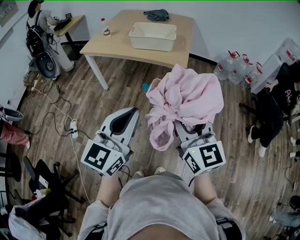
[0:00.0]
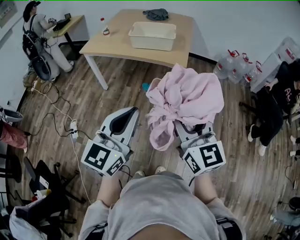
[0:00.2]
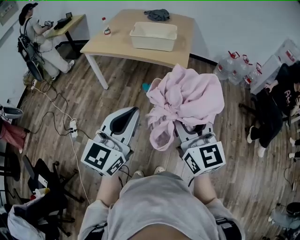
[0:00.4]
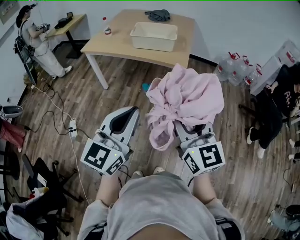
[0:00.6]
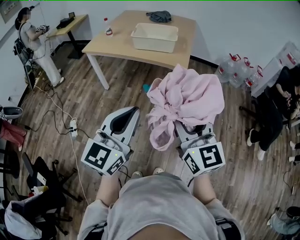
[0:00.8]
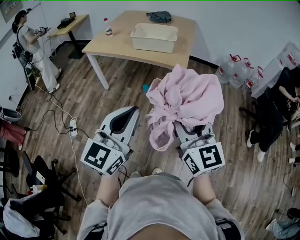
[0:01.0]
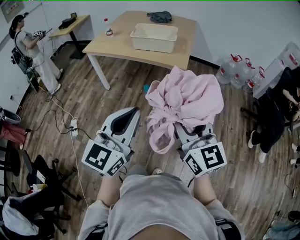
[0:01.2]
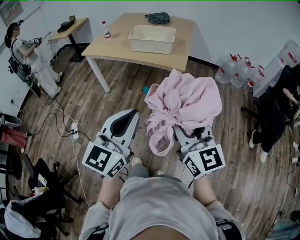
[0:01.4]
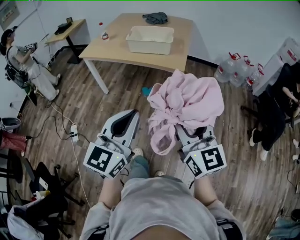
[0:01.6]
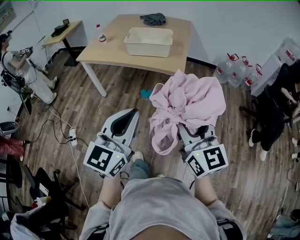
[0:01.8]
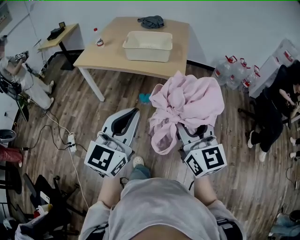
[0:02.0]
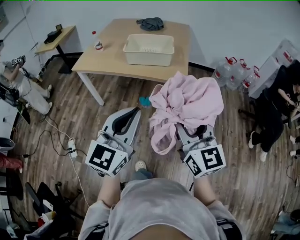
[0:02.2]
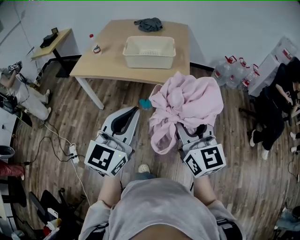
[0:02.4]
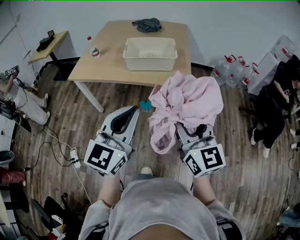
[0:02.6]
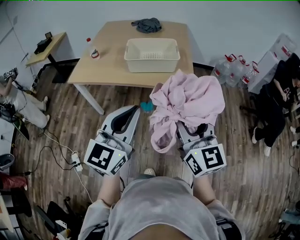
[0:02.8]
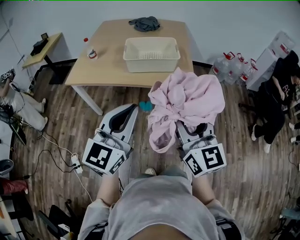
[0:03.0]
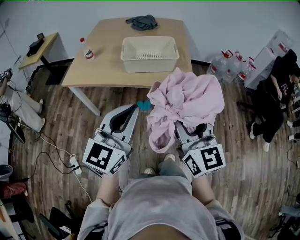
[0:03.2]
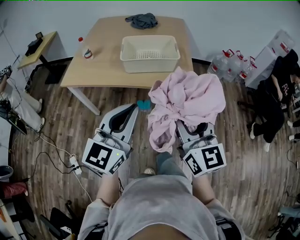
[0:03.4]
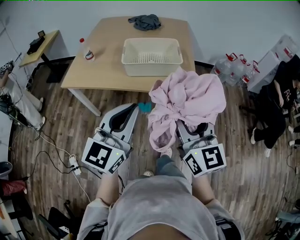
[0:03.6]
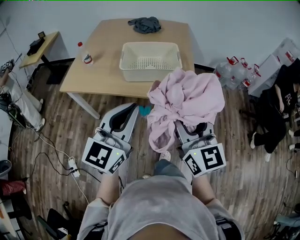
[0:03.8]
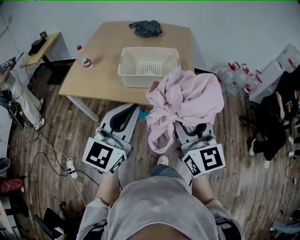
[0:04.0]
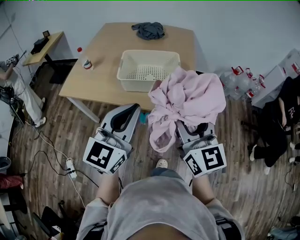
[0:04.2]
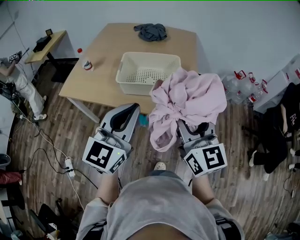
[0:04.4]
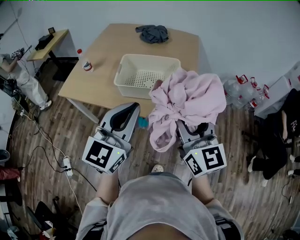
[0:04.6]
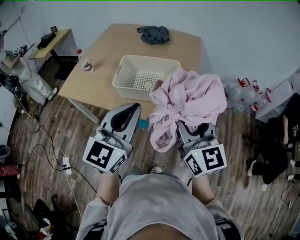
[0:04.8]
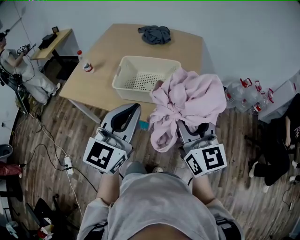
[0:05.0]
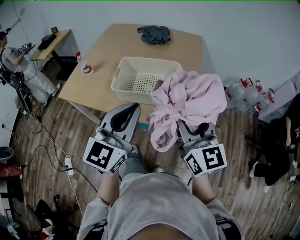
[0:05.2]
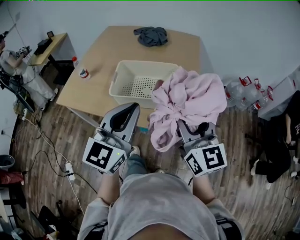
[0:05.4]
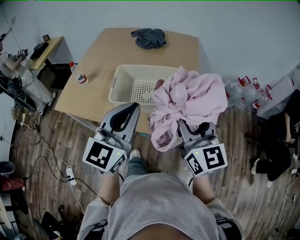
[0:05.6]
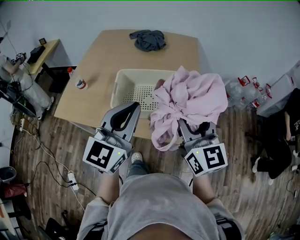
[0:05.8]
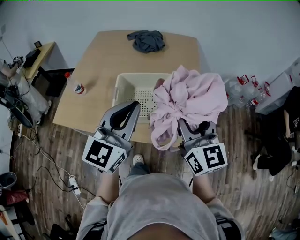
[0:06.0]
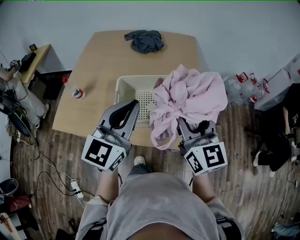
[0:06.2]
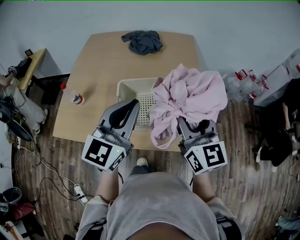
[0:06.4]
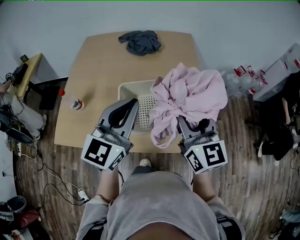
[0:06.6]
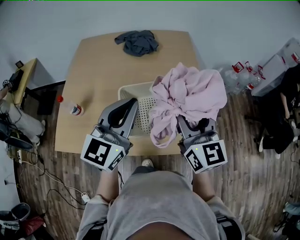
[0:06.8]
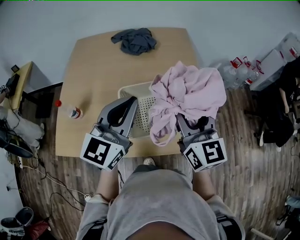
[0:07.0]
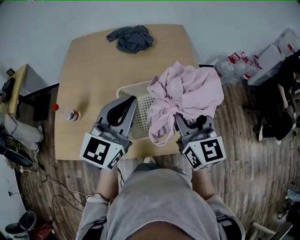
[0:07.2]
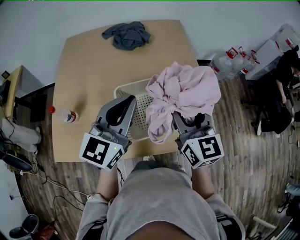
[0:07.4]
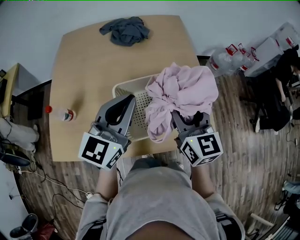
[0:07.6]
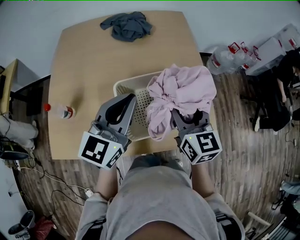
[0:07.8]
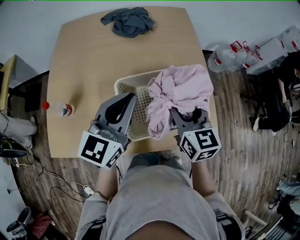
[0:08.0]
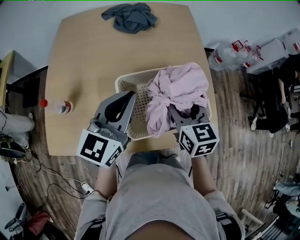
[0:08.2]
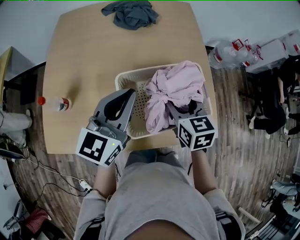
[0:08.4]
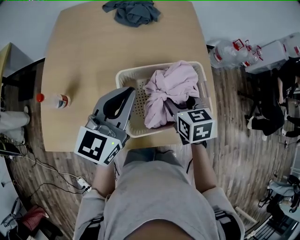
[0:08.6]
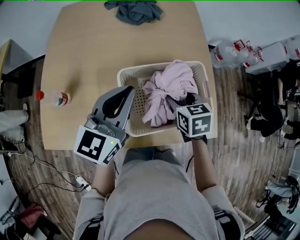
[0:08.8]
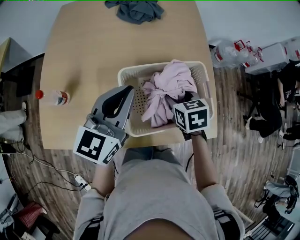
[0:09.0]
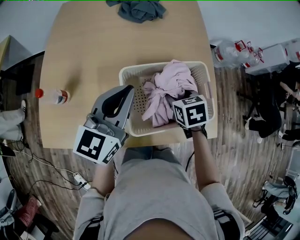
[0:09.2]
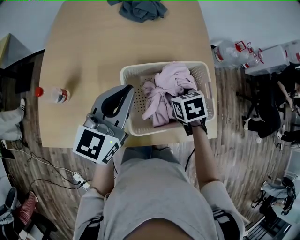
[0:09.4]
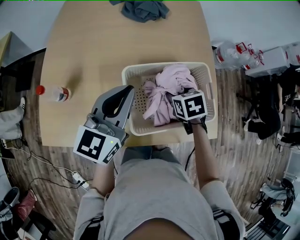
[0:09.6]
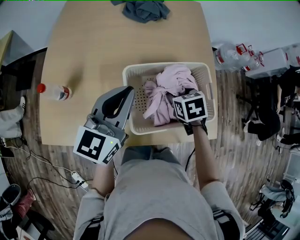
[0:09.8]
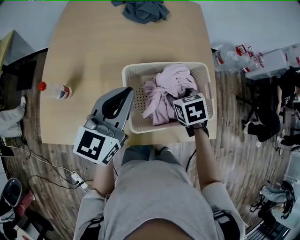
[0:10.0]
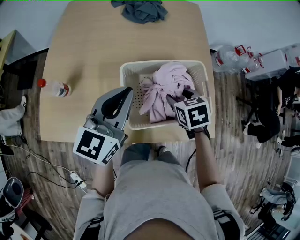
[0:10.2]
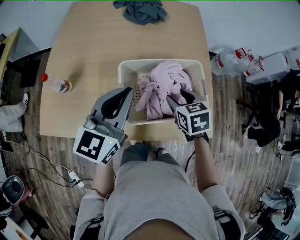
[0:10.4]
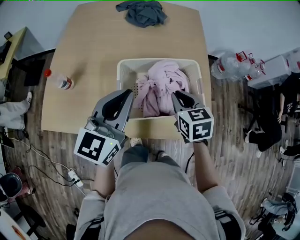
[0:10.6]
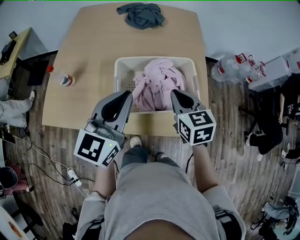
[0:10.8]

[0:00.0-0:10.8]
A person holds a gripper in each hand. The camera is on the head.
0:00.0 to 0:01.6: The grippers move only a little.
0:01.6 to 0:03.0: Both grippers move forward and to the left, approximately 25 cm.
0:03.0 to 0:04.6: Both grippers travel together forward, approximately 20 cm.
0:04.6 to 0:06.2: The two grippers go roughly 20 cm forward.
0:06.2 to 0:07.8: The right gripper moves downward, forward and to the left, about 15 cm, and turns by about 20 degrees; the left gripper moves forward, to the left and downward, about 15 cm.
0:07.8 to 0:09.2: The right gripper moves downward, about 15 cm, and points its fingers about 40 degrees further downward, while the left gripper shifts by approximately 5 cm.
0:09.2 to 0:10.8: The left gripper goes roughly 10 cm backward and to the right, while the right gripper moves upward and backward, approximately 15 cm, swivels approximately 30 degrees, and closes its fingers.

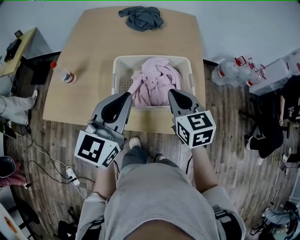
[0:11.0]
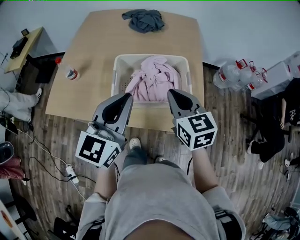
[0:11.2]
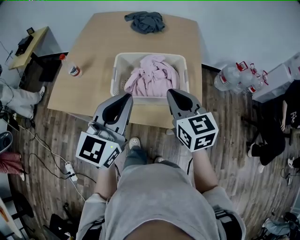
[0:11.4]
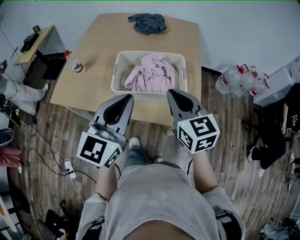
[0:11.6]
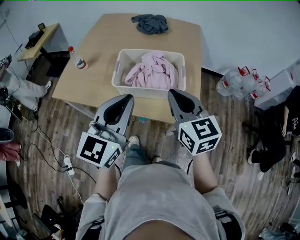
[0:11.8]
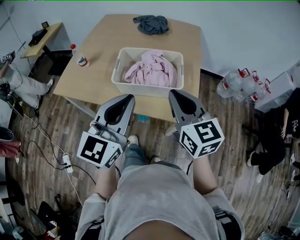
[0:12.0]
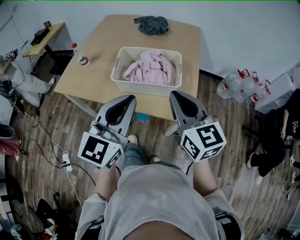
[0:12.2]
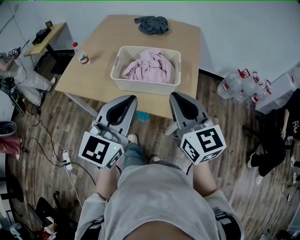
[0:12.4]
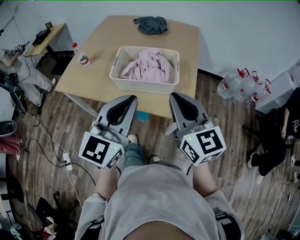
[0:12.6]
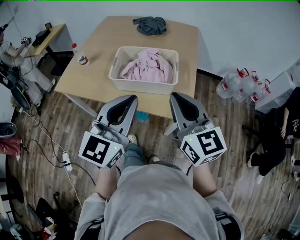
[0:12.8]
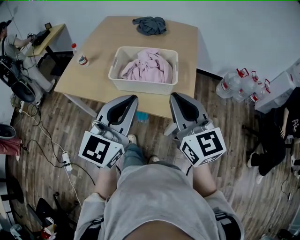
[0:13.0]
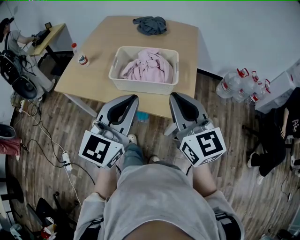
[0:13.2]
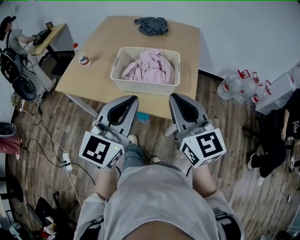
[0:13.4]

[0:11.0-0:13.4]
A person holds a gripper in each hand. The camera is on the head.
0:11.0 to 0:12.2: The right gripper travels backward and upward by approximately 20 cm, and rotates approximately 20 degrees. Meanwhile the left gripper travels backward and to the right by some 20 cm.
0:12.2 to 0:13.4: There are only small adjustments of the grippers.

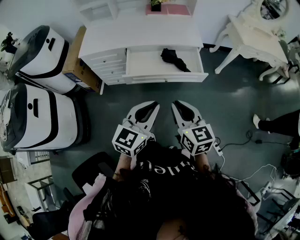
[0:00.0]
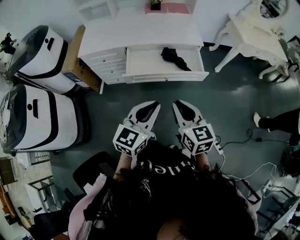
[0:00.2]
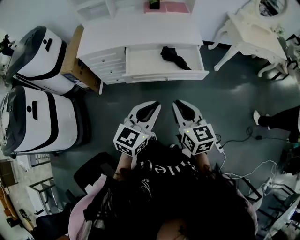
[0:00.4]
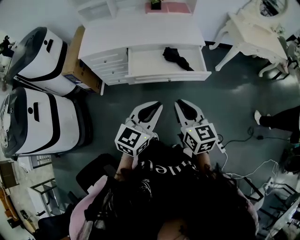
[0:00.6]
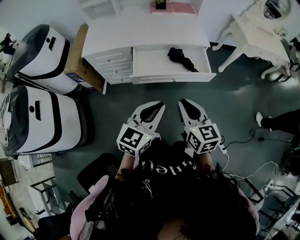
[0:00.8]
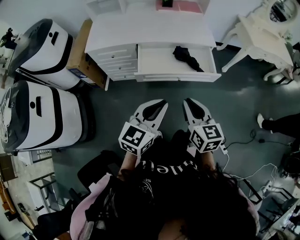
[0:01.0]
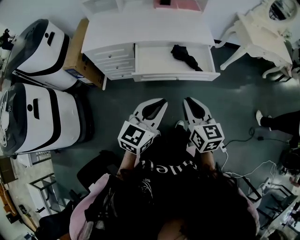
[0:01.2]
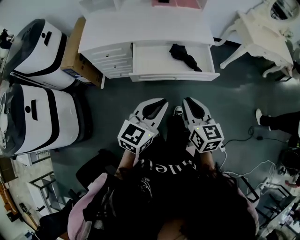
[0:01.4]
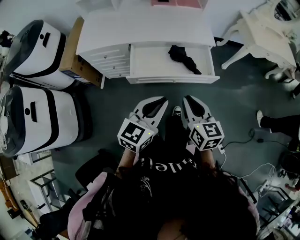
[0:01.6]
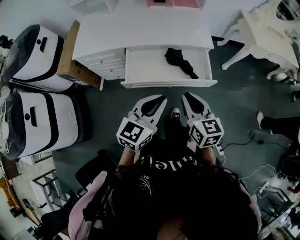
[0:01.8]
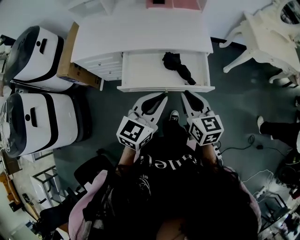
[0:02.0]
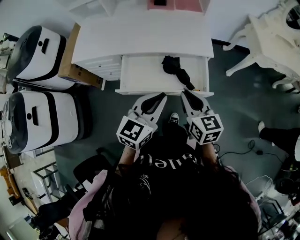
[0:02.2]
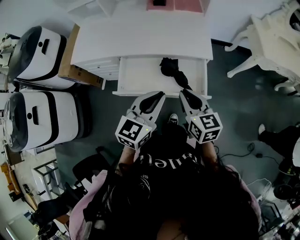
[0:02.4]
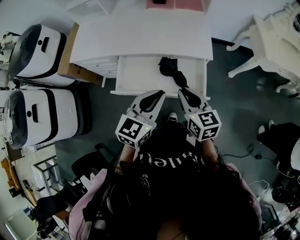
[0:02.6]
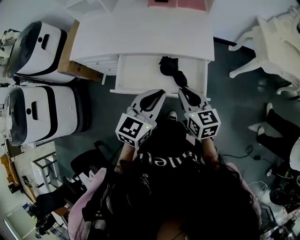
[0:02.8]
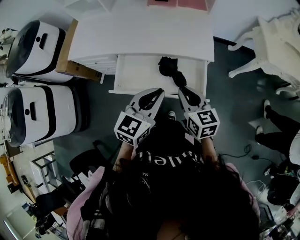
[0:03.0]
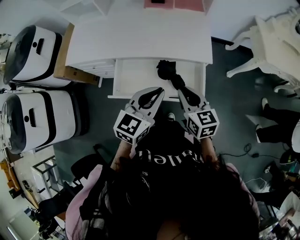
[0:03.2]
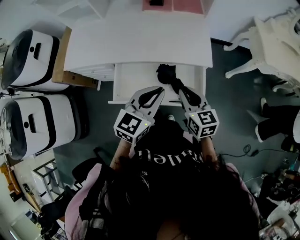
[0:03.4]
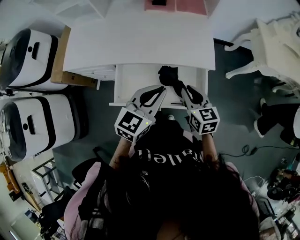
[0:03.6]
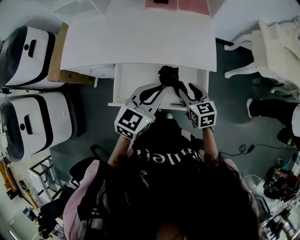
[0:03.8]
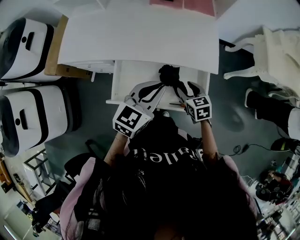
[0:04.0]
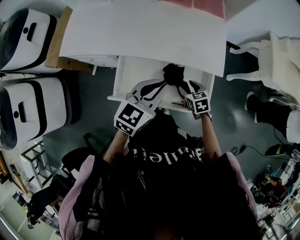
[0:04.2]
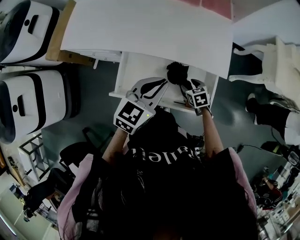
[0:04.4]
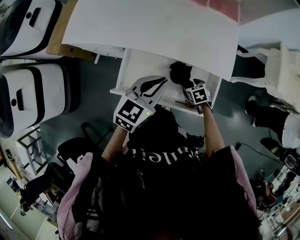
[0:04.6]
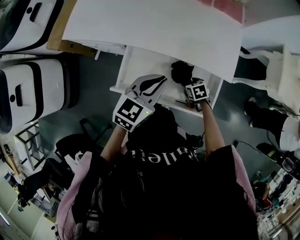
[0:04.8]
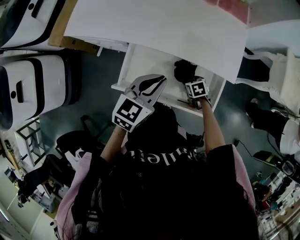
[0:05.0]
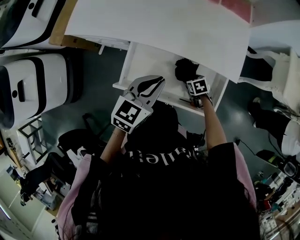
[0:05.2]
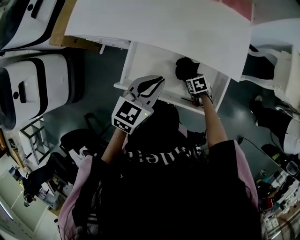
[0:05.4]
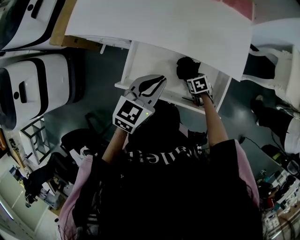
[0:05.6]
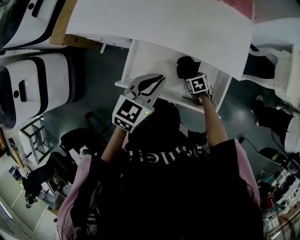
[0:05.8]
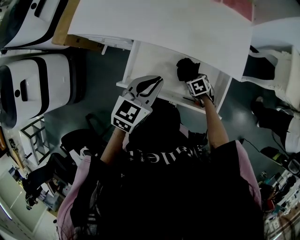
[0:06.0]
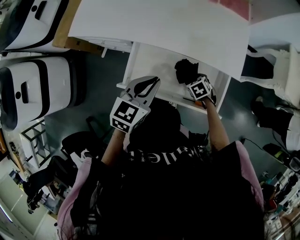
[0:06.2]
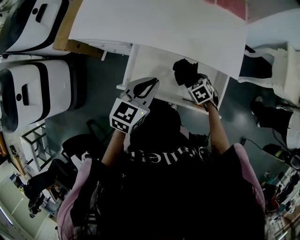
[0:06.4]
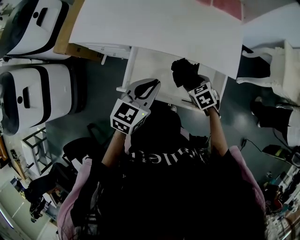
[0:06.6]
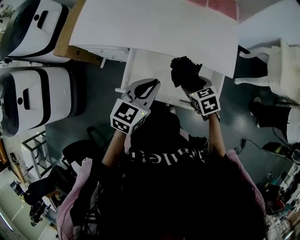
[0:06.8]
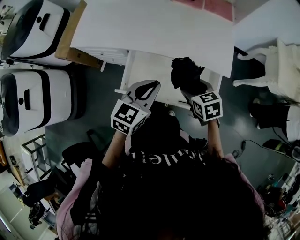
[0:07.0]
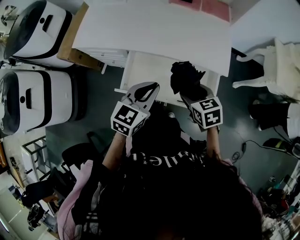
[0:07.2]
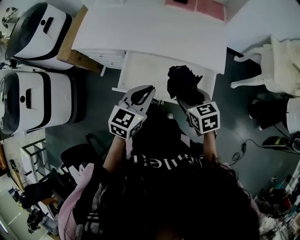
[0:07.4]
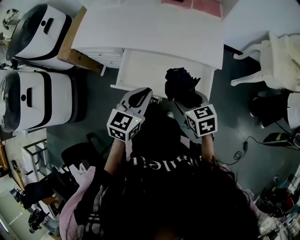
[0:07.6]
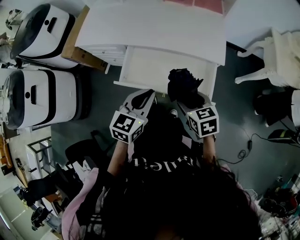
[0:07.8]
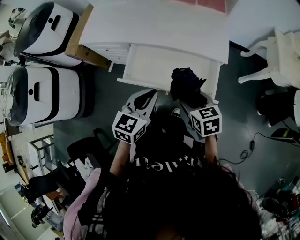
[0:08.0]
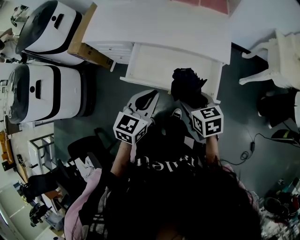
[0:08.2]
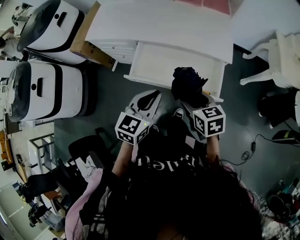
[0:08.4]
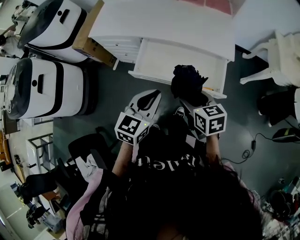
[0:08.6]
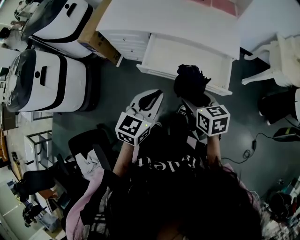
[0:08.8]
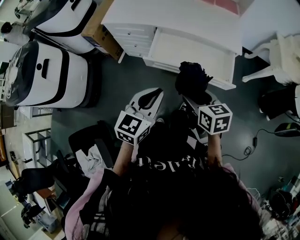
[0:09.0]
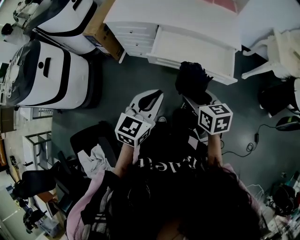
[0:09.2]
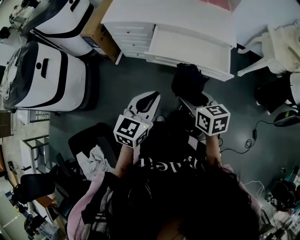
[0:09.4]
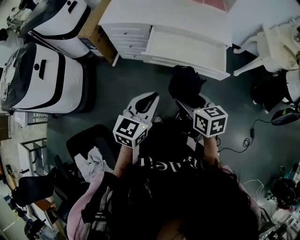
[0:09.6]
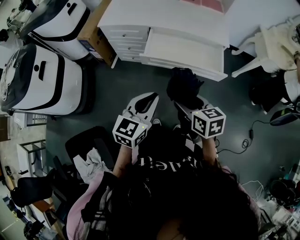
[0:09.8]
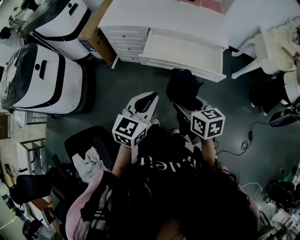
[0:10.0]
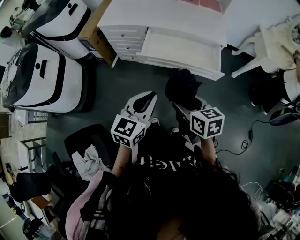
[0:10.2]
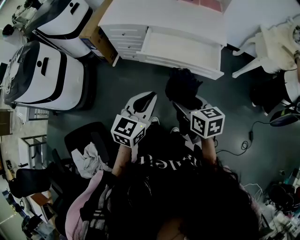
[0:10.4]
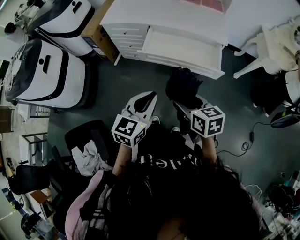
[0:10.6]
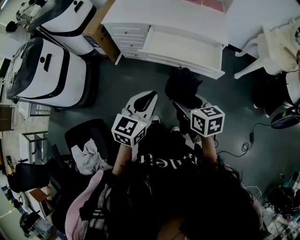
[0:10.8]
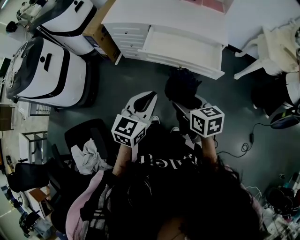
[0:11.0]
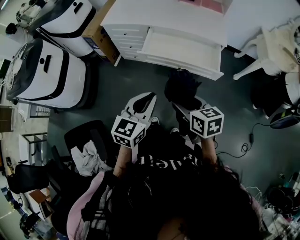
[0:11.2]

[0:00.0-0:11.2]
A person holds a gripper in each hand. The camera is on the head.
0:00.0 to 0:01.6: Both grippers travel together forward, about 10 cm.
0:01.6 to 0:03.2: The two grippers go some 25 cm forward and to the right.
0:03.2 to 0:04.8: The left gripper heads forward, to the left and downward, covering about 15 cm. The right gripper travels downward and forward by some 35 cm, angles its fingers downward, by roughly 40 degrees, and opens.
0:04.8 to 0:06.4: The right gripper goes about 5 cm upward, while the left gripper changes place by roughly 5 cm.
0:06.4 to 0:08.0: The right gripper heads upward and backward, covering roughly 25 cm, and rotates about 30 degrees, while the left gripper is displaced backward by about 15 cm.
0:08.0 to 0:09.6: The grippers both shift backward and to the left by approximately 30 cm.
0:09.6 to 0:11.2: The left gripper moves to the right, approximately 5 cm. Meanwhile the right gripper is displaced backward by about 5 cm.
